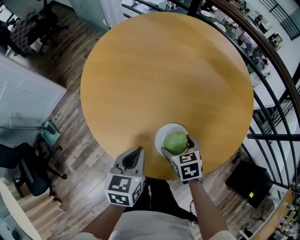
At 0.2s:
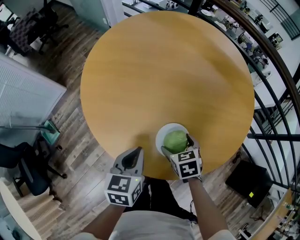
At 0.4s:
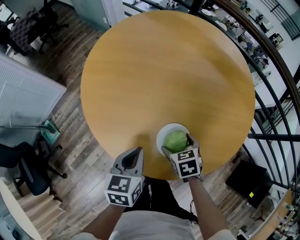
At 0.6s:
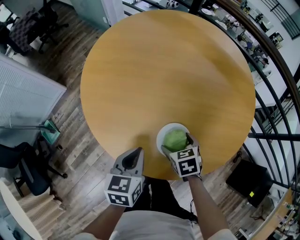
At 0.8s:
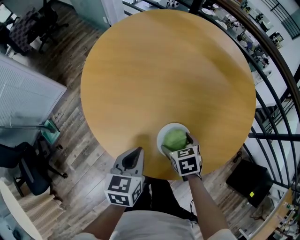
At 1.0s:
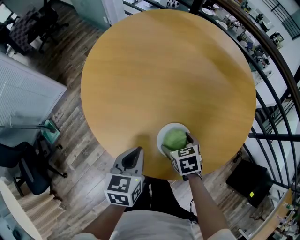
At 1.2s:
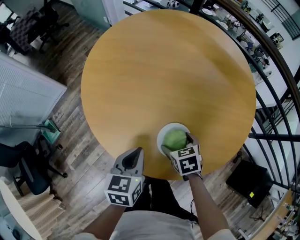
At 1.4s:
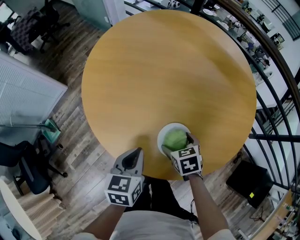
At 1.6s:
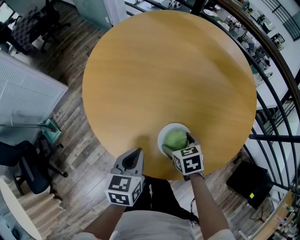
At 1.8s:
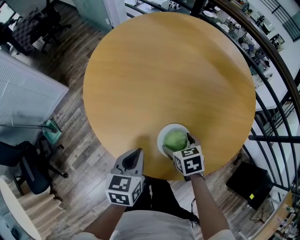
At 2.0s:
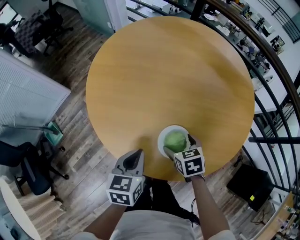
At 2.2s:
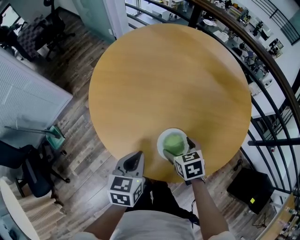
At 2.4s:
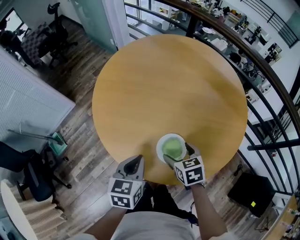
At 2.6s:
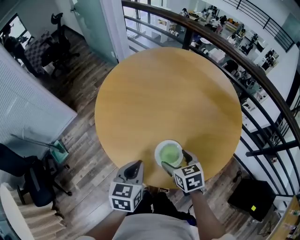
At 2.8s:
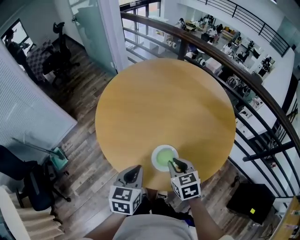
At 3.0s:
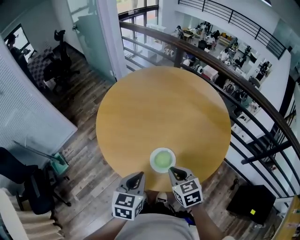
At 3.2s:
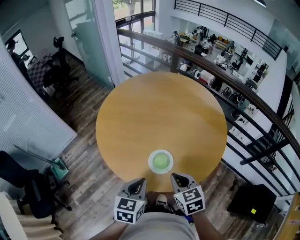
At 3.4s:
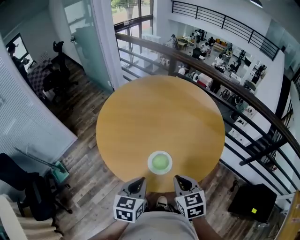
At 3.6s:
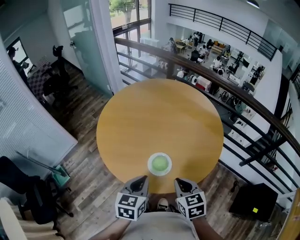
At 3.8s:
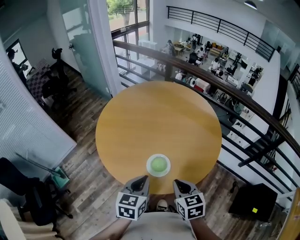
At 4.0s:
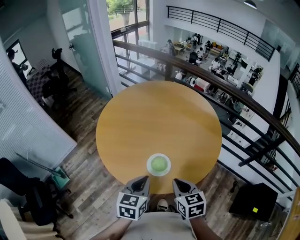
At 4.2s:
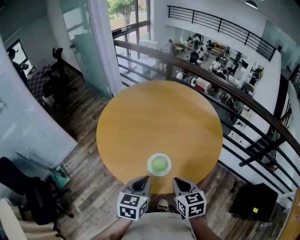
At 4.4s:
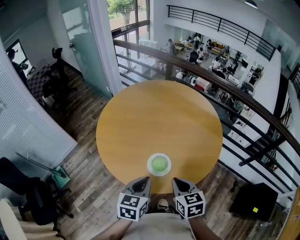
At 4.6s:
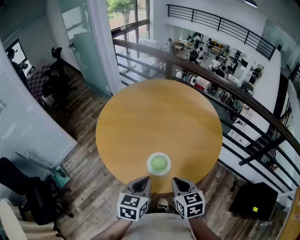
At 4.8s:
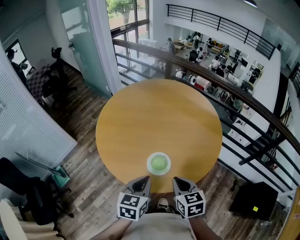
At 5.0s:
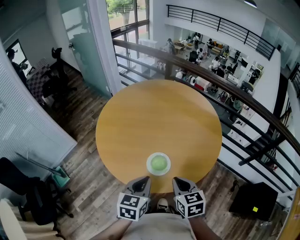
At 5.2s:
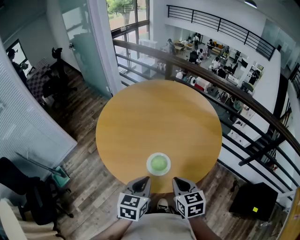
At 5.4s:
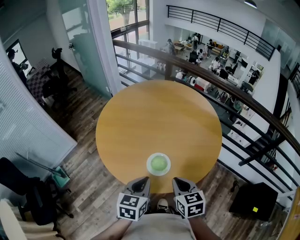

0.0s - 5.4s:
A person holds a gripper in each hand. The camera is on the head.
0.0s - 1.4s: The grippers move only a little.
1.4s - 2.8s: The left gripper goes roughly 10 cm upward. Meanwhile the right gripper goes about 15 cm upward, and closes its fingers.
2.8s - 4.0s: The left gripper shifts approximately 10 cm to the right, backward and upward. Meanwhile the right gripper travels backward and upward by about 15 cm.
4.0s - 5.4s: The two grippers keep their place.

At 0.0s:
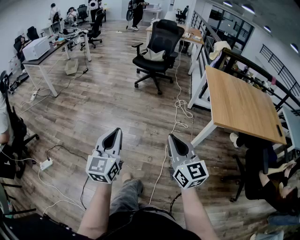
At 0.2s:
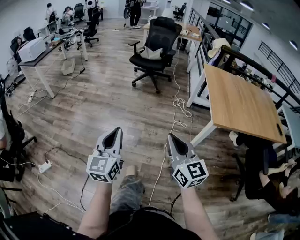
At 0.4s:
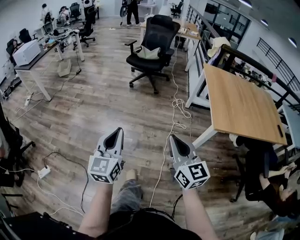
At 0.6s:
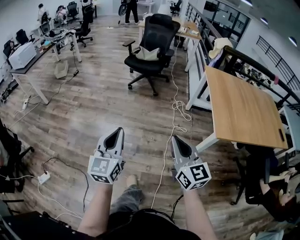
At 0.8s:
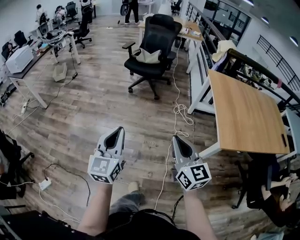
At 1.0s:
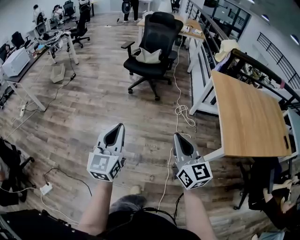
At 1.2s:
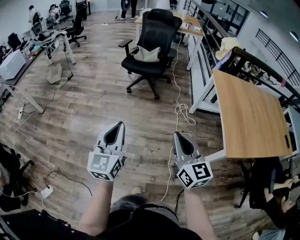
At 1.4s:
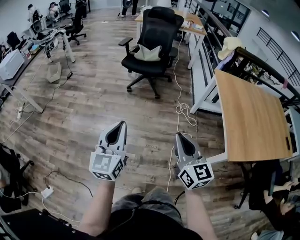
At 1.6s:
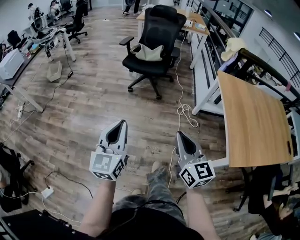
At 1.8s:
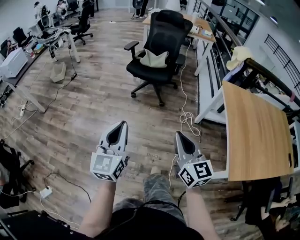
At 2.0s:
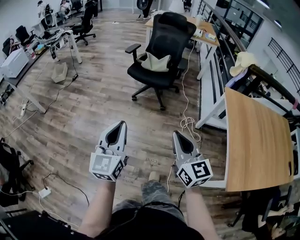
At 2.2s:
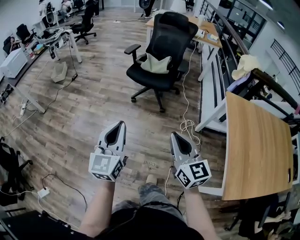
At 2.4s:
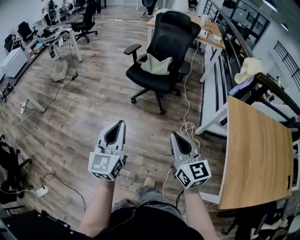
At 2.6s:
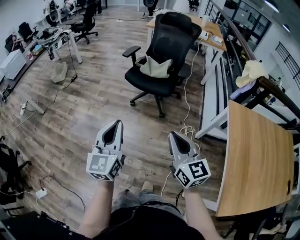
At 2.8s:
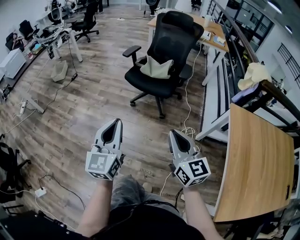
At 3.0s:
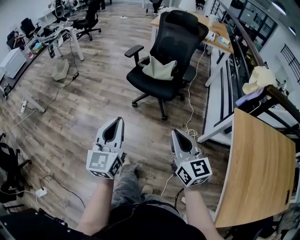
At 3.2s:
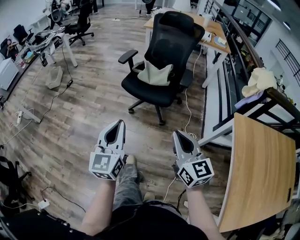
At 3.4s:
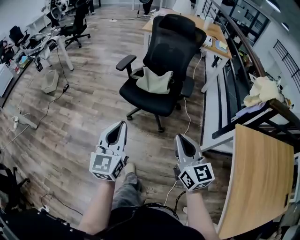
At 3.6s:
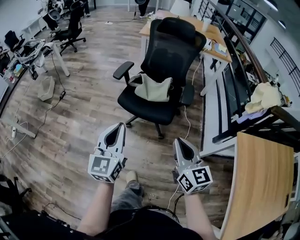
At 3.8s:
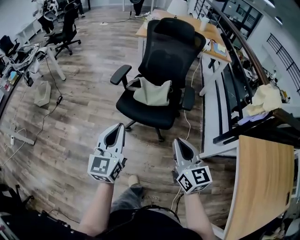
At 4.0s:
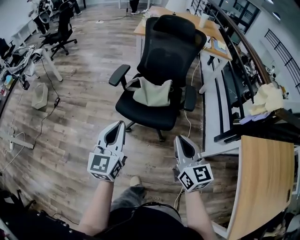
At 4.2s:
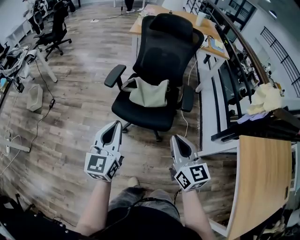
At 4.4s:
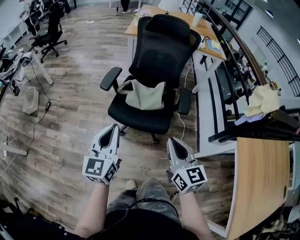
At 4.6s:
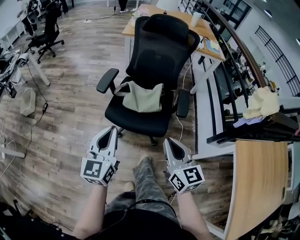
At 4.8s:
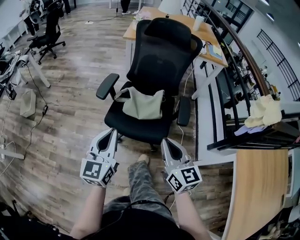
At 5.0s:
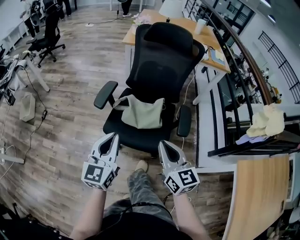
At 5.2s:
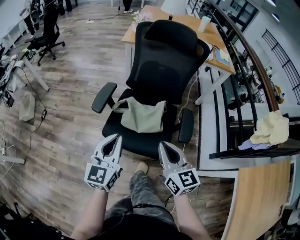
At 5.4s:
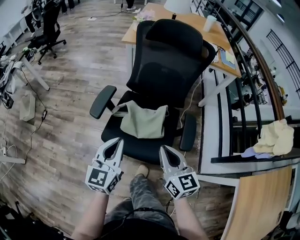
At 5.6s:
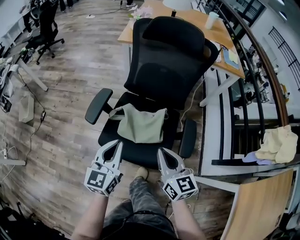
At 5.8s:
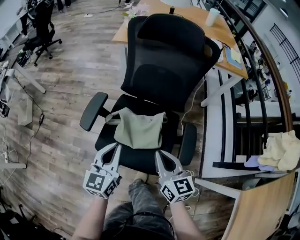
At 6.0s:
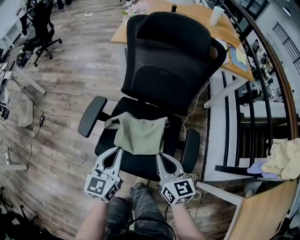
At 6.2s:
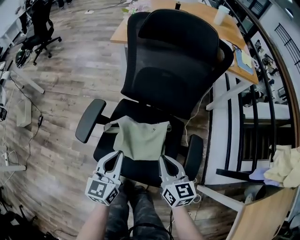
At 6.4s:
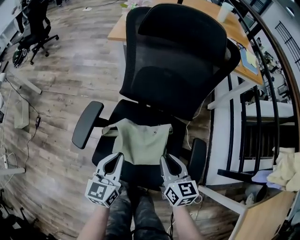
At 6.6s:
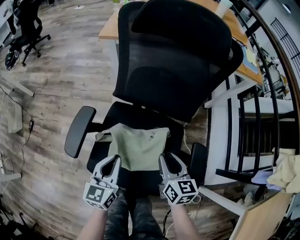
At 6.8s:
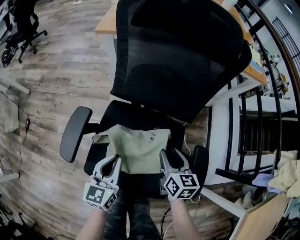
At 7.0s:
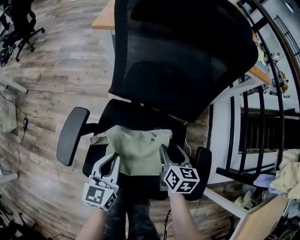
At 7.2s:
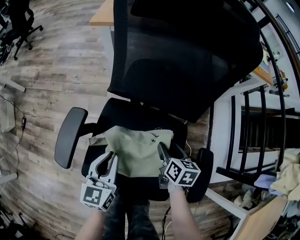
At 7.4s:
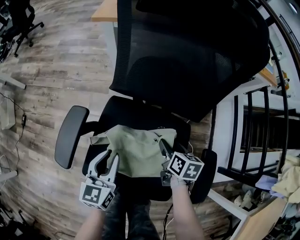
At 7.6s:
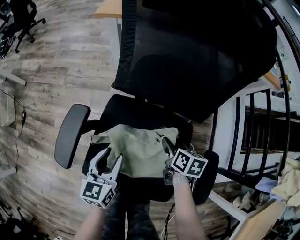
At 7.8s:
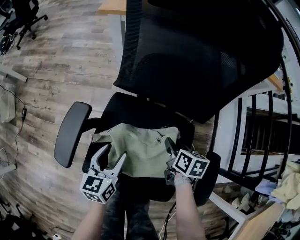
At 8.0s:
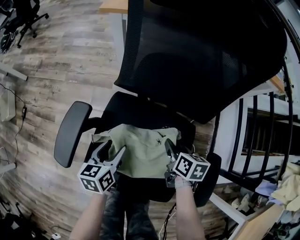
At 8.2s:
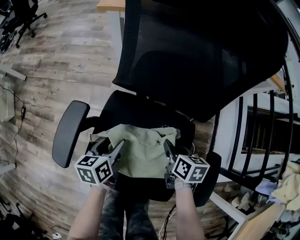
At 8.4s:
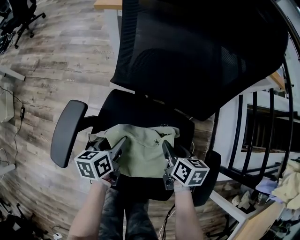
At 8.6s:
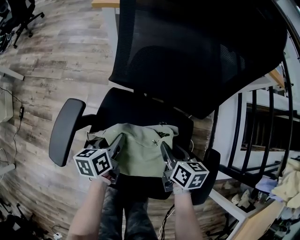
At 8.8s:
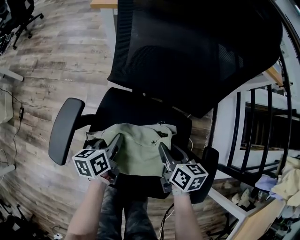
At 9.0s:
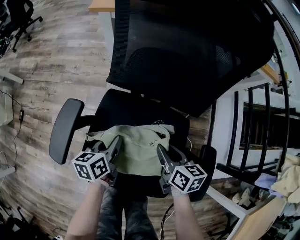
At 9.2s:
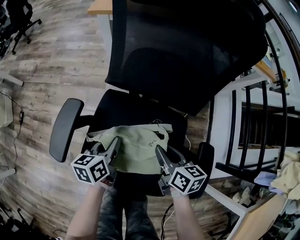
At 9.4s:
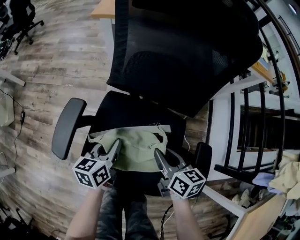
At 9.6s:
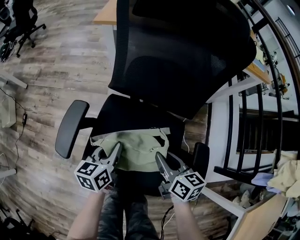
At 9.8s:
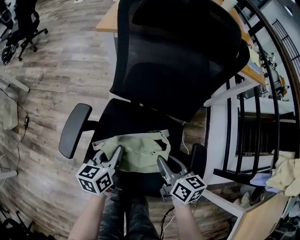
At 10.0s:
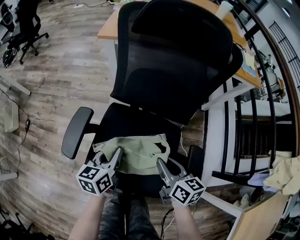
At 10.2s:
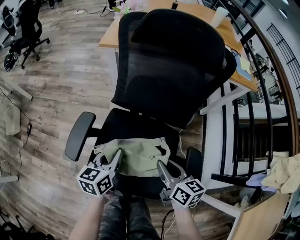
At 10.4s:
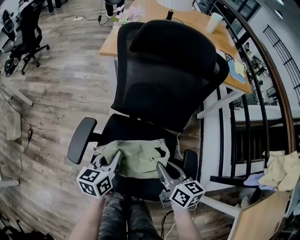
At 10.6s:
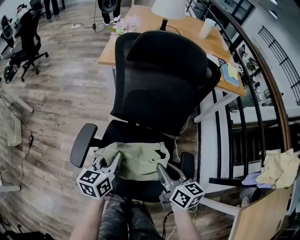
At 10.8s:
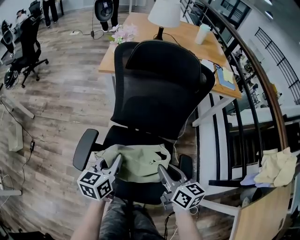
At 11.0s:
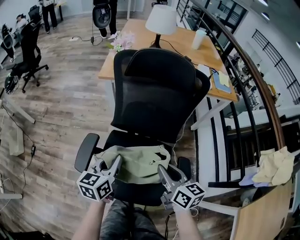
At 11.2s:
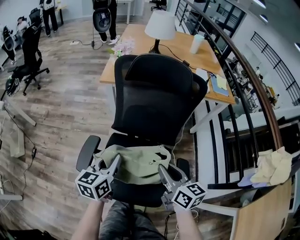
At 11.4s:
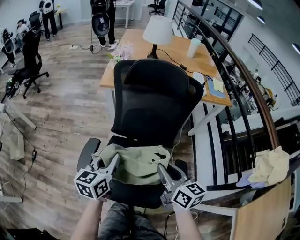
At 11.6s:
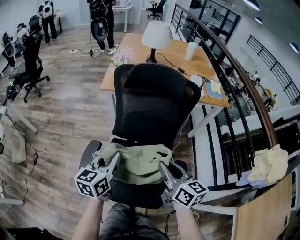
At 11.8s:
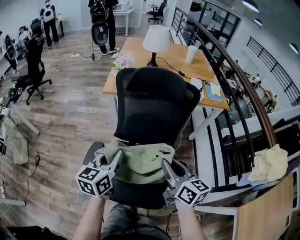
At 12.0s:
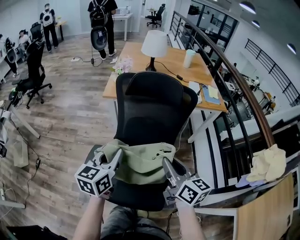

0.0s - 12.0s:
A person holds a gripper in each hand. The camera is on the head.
0.0s - 1.6s: Both grippers move forward, roughly 40 cm.
1.6s - 3.0s: Both grippers move forward, roughly 25 cm.
3.0s - 4.4s: Both grippers travel together forward, roughly 30 cm.
4.4s - 6.0s: Both grippers move forward and downward, roughly 30 cm.
6.0s - 7.6s: The two grippers go about 25 cm downward and forward. The left gripper opens its fingers, while the right gripper angles its fingers downward, by roughly 30 degrees, and opens up.
7.6s - 9.0s: The left gripper heads downward, covering about 5 cm, swivels roughly 30 degrees, and closes, while the right gripper changes place by about 5 cm, and closes its fingers.
9.0s - 10.4s: The two grippers go roughly 15 cm upward. The left gripper rotates approximately 20 degrees.
10.4s - 12.0s: Both grippers travel together upward, roughly 20 cm.

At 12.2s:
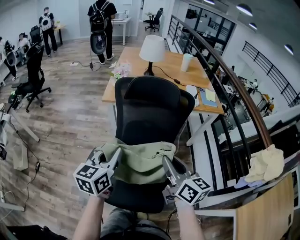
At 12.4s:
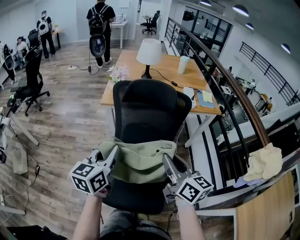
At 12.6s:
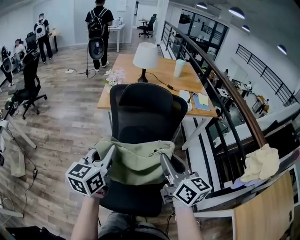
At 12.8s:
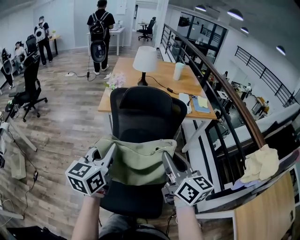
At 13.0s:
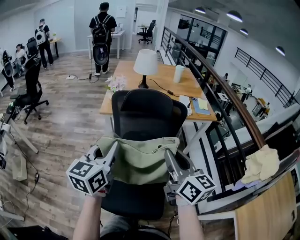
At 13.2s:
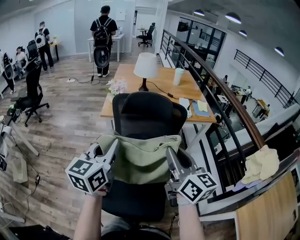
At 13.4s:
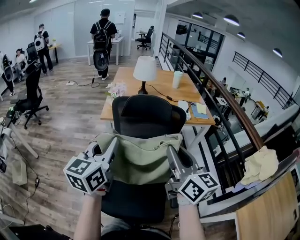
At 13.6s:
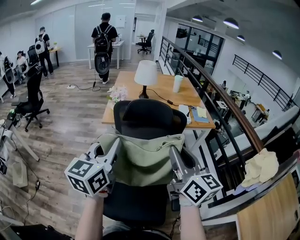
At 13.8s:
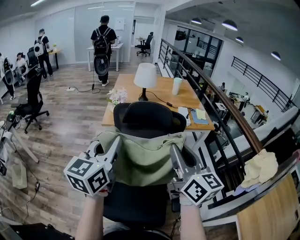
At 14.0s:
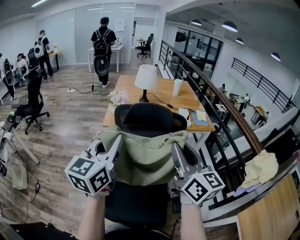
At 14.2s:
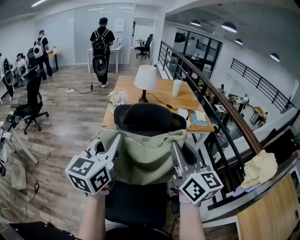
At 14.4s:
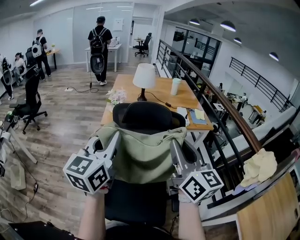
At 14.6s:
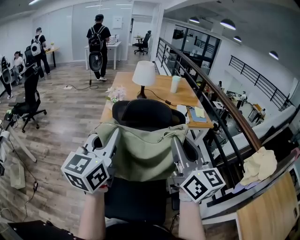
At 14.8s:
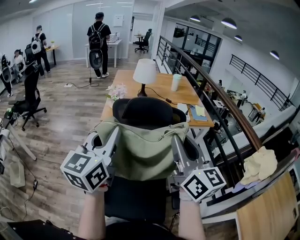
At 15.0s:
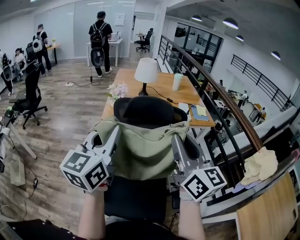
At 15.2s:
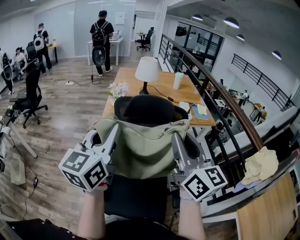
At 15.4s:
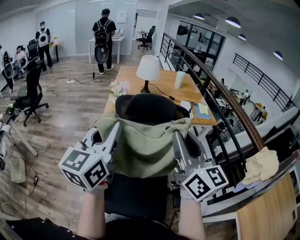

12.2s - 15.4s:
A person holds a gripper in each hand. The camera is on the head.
12.2s - 13.8s: Both grippers move upward, approximately 15 cm. The right gripper changes its angle by roughly 20 degrees.
13.8s - 15.4s: There are only small adjustments of the grippers.

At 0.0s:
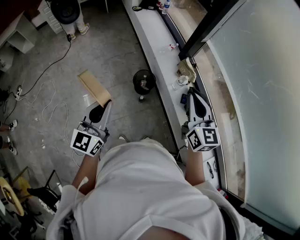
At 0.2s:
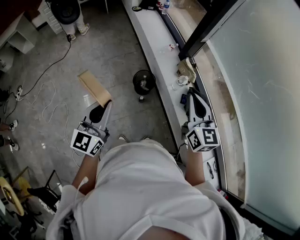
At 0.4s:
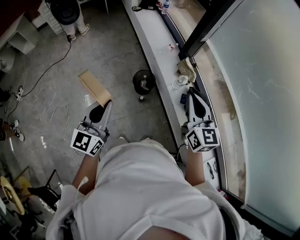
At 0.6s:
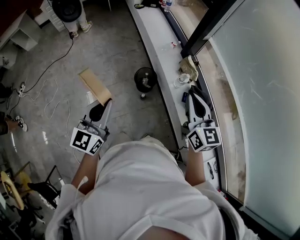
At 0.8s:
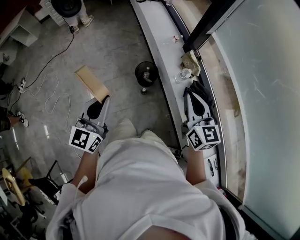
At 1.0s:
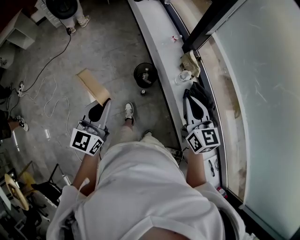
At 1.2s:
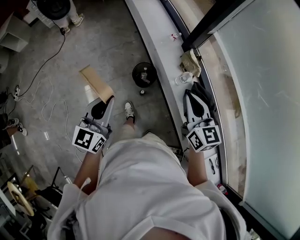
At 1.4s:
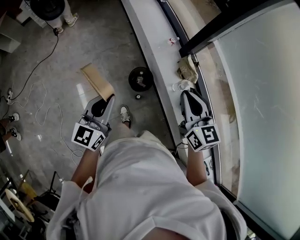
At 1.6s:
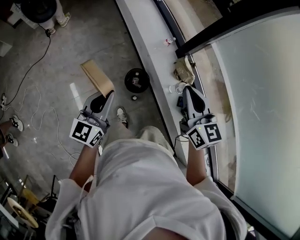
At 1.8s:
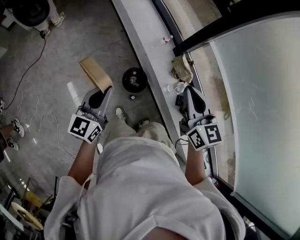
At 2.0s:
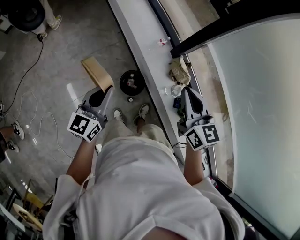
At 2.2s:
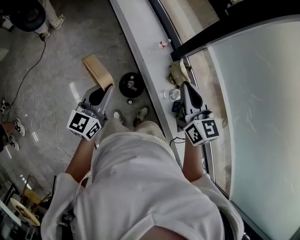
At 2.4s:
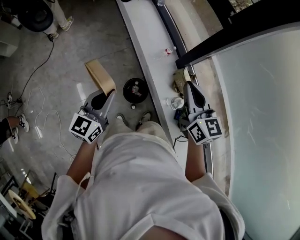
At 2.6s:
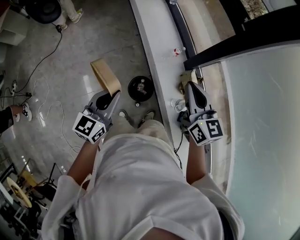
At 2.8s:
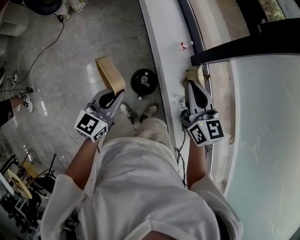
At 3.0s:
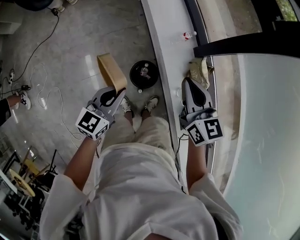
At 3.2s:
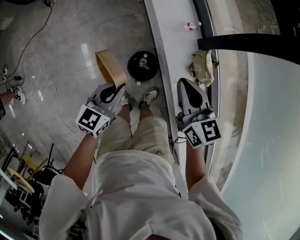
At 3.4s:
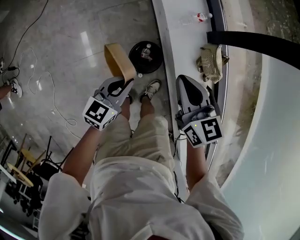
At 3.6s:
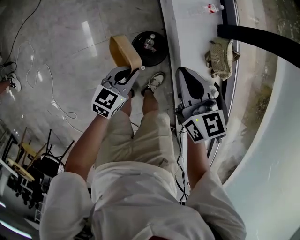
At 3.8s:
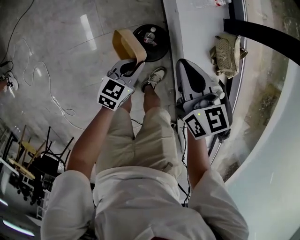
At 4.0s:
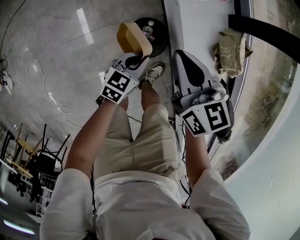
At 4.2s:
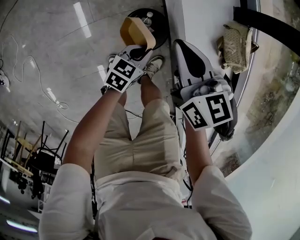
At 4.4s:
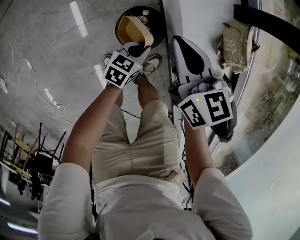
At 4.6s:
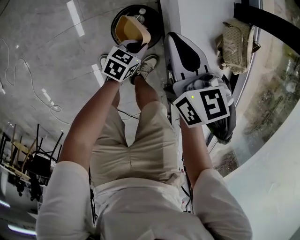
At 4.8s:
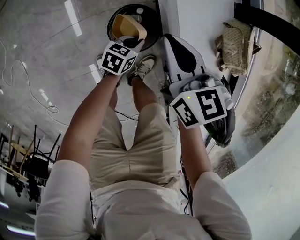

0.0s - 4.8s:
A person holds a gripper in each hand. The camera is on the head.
0.0s - 1.6s: Both grippers move forward, approximately 20 cm.
1.6s - 3.2s: The left gripper is displaced downward, forward and to the right by about 25 cm, and turns by some 20 degrees. The right gripper moves downward and forward, roughly 25 cm.
3.2s - 4.8s: The left gripper moves downward, some 50 cm, and rotates some 30 degrees; the right gripper is displaced downward by approximately 30 cm.
